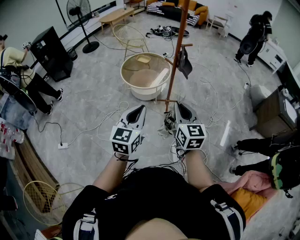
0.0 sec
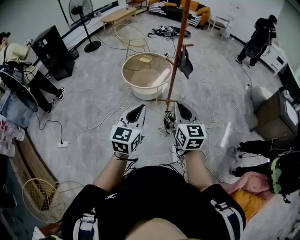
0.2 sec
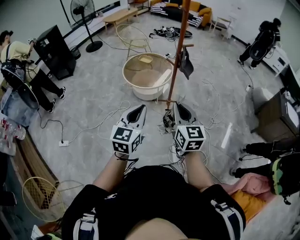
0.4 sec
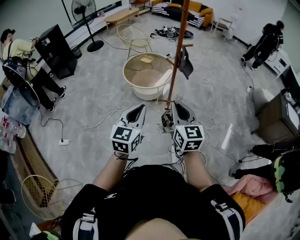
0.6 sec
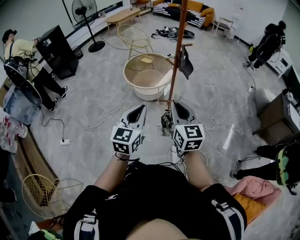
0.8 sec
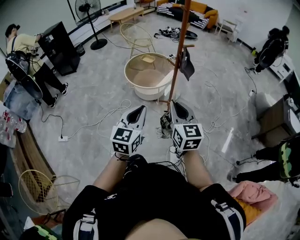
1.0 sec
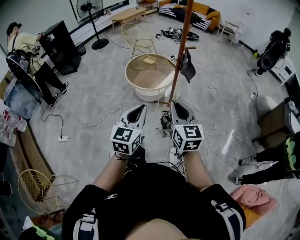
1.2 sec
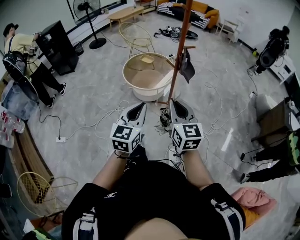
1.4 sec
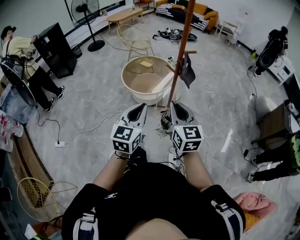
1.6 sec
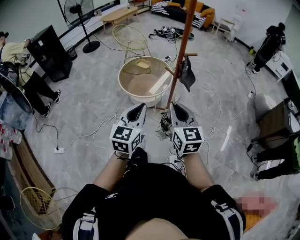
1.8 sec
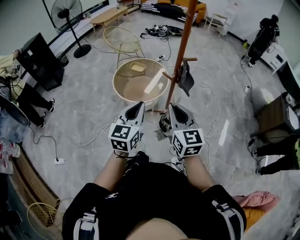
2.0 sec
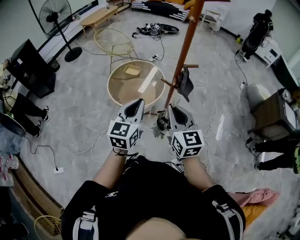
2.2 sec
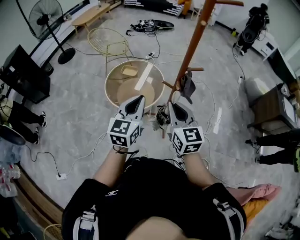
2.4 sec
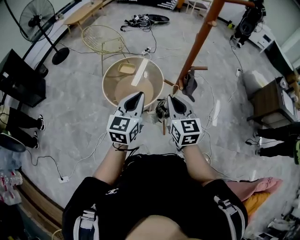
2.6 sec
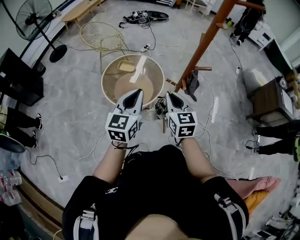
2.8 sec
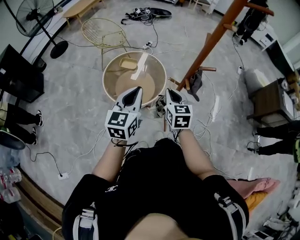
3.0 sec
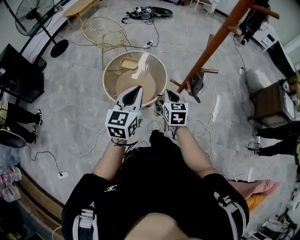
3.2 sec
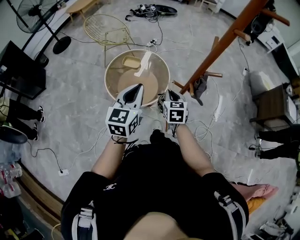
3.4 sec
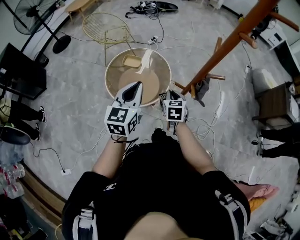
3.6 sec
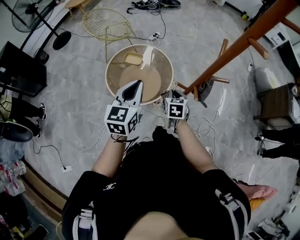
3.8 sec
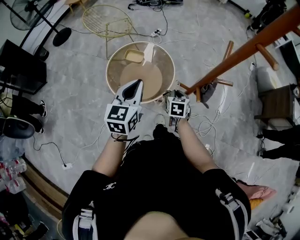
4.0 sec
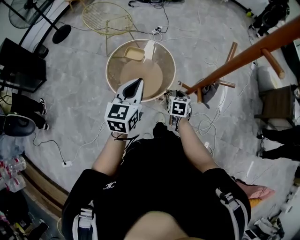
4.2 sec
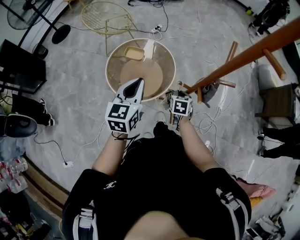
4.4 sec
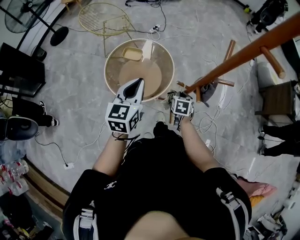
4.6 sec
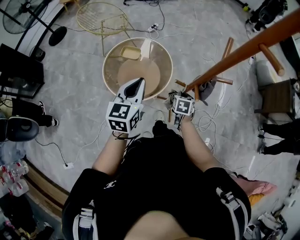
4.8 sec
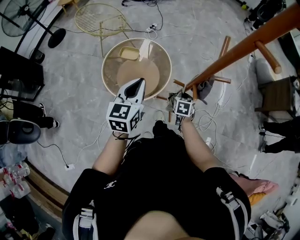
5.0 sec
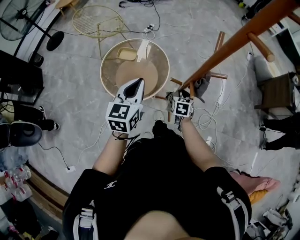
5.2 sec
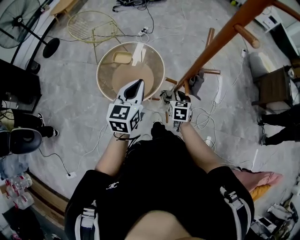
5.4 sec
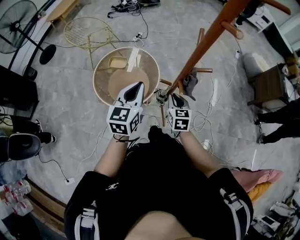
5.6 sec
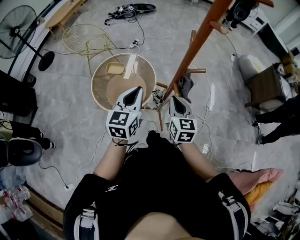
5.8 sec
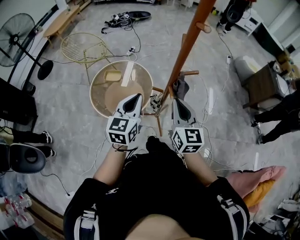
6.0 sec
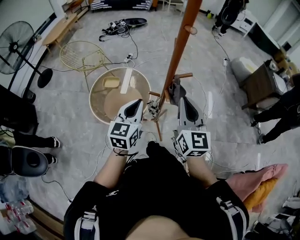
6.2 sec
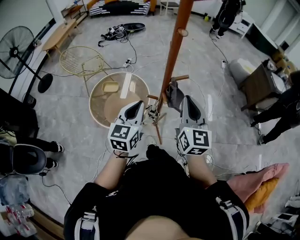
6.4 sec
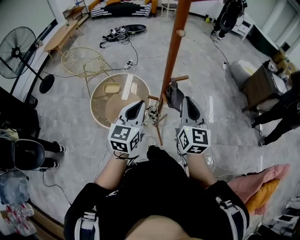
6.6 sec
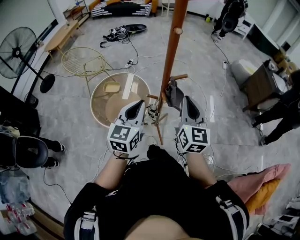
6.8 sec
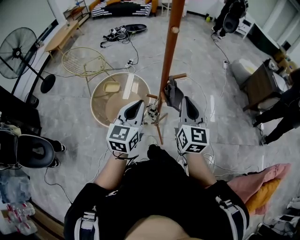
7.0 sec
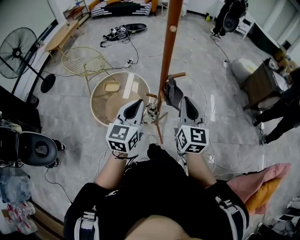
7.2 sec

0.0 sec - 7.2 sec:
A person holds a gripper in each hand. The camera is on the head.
0.0 sec - 1.4 sec: The right gripper shifts some 5 cm forward. The left gripper travels to the right and forward by approximately 10 cm.
1.4 sec - 2.8 sec: Both grippers are carried forward, some 50 cm. The right gripper swivels some 20 degrees.
2.8 sec - 4.4 sec: The right gripper moves downward and forward, some 30 cm, and points its fingers some 30 degrees further downward; the left gripper goes about 20 cm forward and downward.
4.4 sec - 5.8 sec: The right gripper goes about 20 cm upward and backward, and tilts its fingers some 30 degrees upward, while the left gripper shifts approximately 10 cm to the right.
5.8 sec - 7.2 sec: The right gripper is displaced upward and to the right by roughly 15 cm, while the left gripper heads to the right, upward and backward, covering approximately 10 cm.

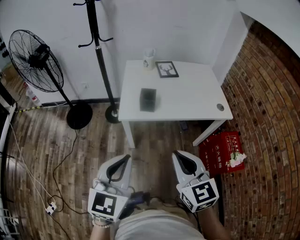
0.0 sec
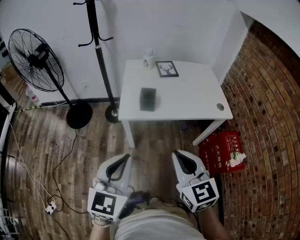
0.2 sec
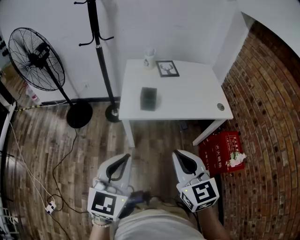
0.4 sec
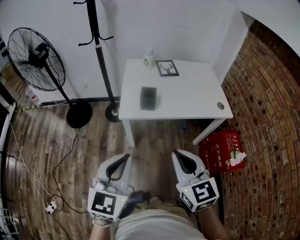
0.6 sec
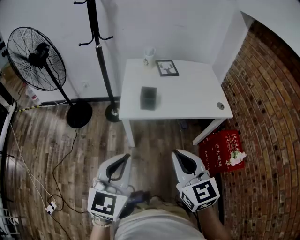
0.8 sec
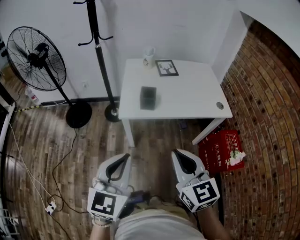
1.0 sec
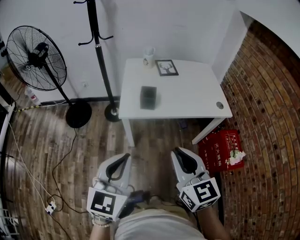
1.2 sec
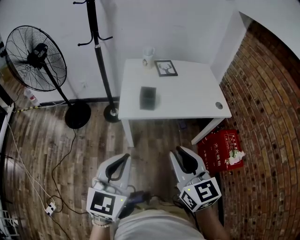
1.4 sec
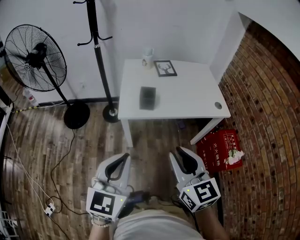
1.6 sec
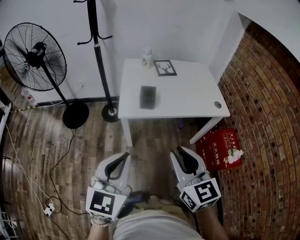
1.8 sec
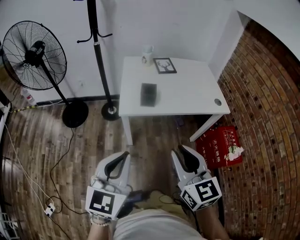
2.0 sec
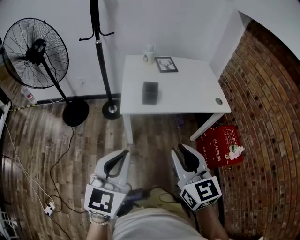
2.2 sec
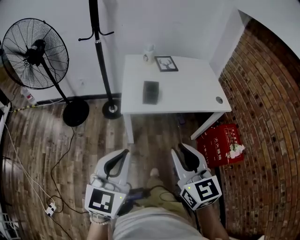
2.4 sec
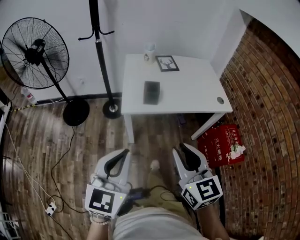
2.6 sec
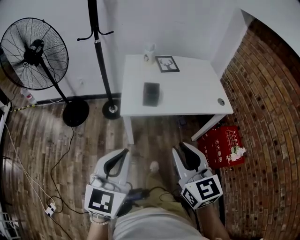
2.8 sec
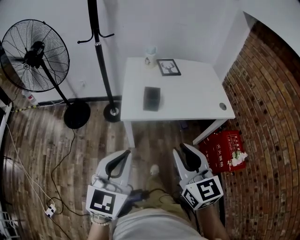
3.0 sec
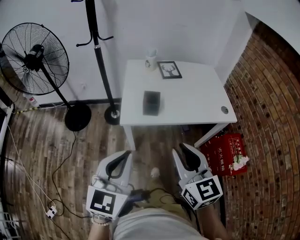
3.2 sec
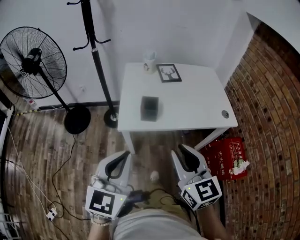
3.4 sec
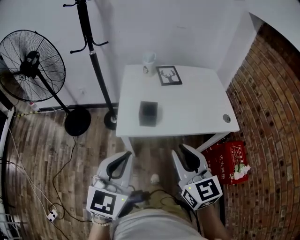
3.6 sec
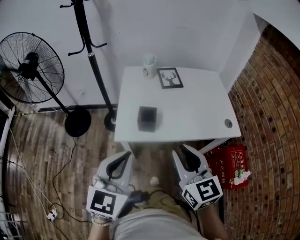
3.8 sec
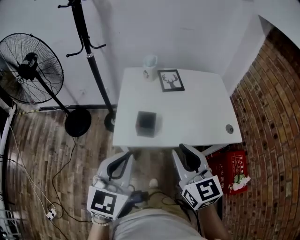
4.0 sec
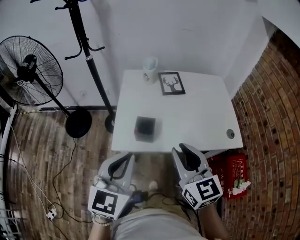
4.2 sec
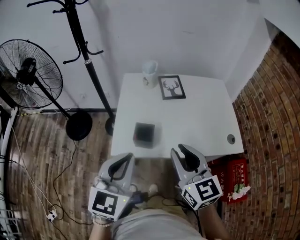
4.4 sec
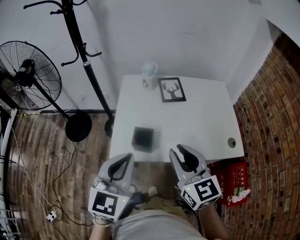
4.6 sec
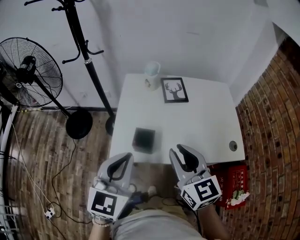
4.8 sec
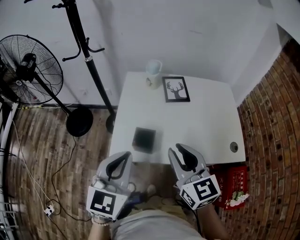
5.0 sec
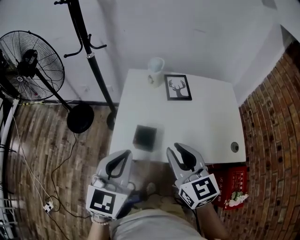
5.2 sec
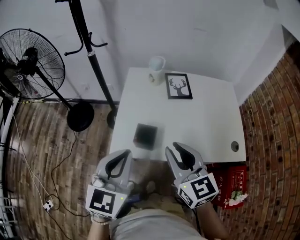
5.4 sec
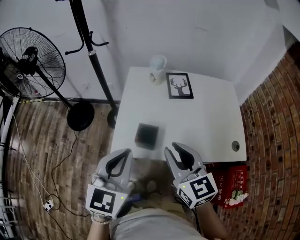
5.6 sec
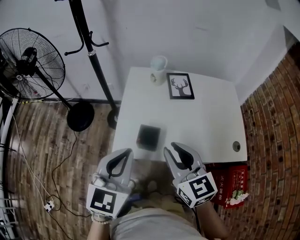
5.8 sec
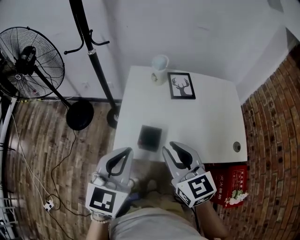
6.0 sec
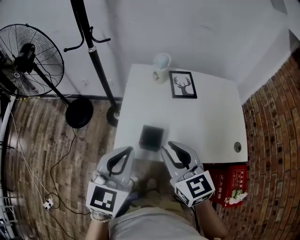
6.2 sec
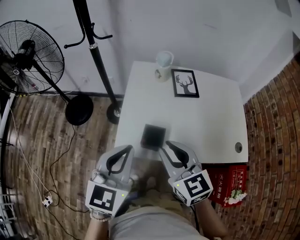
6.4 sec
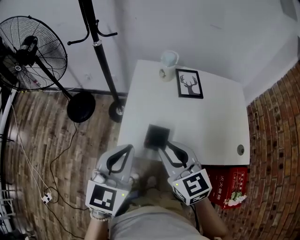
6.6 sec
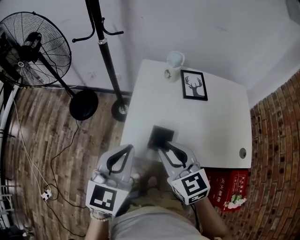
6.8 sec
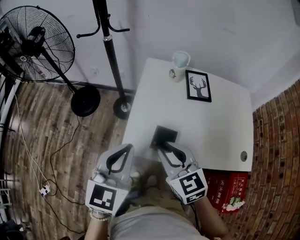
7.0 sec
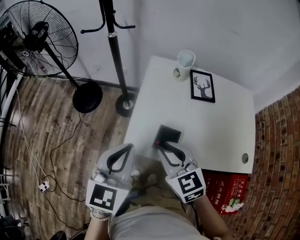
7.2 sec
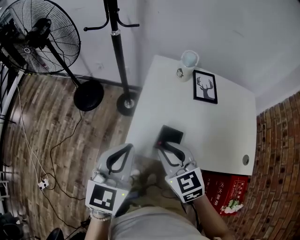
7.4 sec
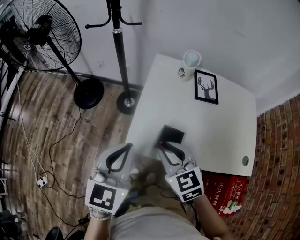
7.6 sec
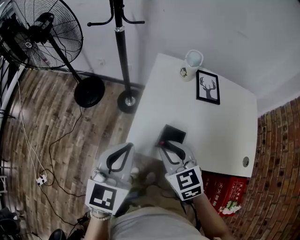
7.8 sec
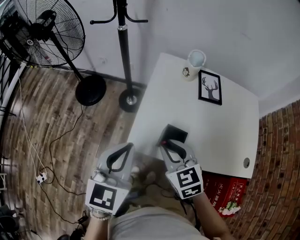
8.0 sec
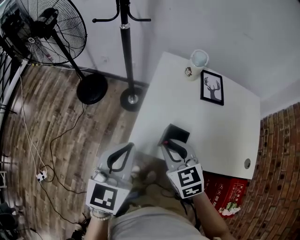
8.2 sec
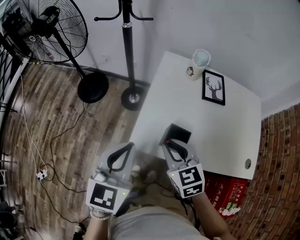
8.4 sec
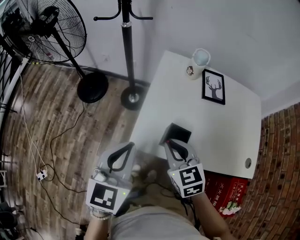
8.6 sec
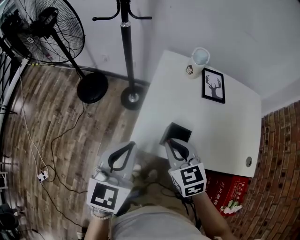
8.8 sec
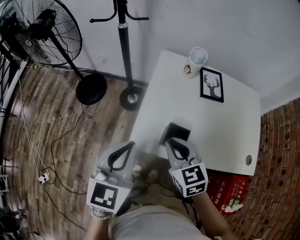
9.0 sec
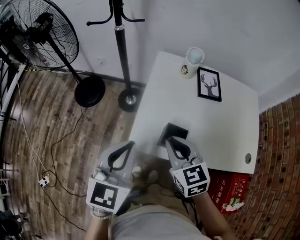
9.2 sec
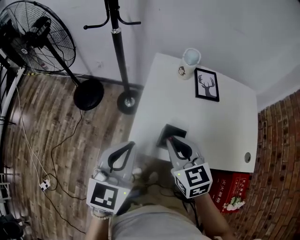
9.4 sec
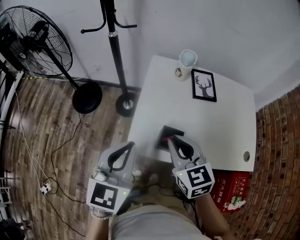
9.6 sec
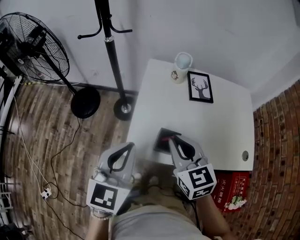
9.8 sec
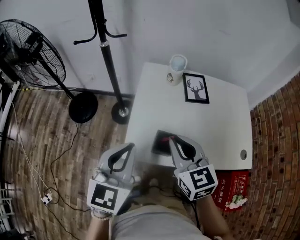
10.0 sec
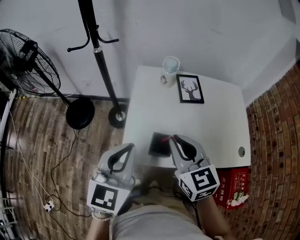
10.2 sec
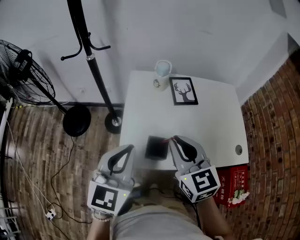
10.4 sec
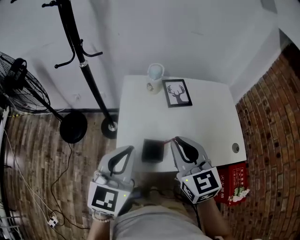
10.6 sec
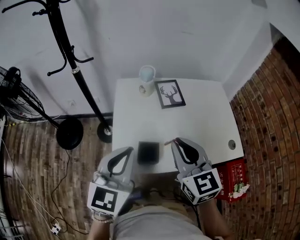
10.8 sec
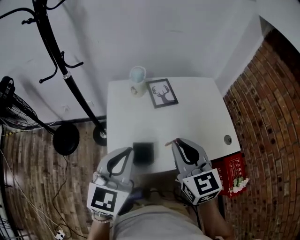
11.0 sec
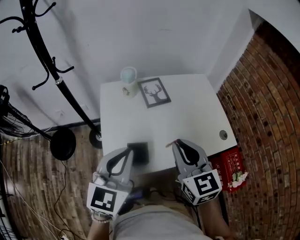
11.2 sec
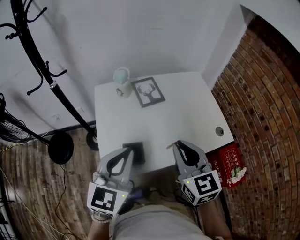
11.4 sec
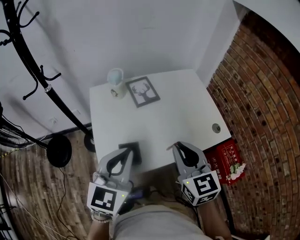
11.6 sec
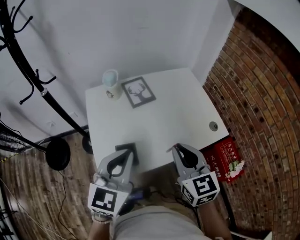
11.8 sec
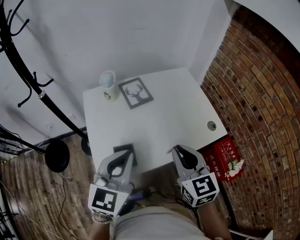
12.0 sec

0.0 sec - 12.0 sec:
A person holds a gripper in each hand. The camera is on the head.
0.0 sec - 3.0 sec: There are only small adjustments of the grippers.
3.0 sec - 4.4 sec: Both grippers move forward, about 20 cm.
4.4 sec - 6.0 sec: The right gripper shifts some 10 cm forward and to the left. The left gripper heads forward, covering about 5 cm.
6.0 sec - 7.6 sec: The right gripper goes roughly 10 cm downward and to the left, and rotates some 20 degrees. Meanwhile the left gripper shifts approximately 5 cm to the left.
7.6 sec - 9.0 sec: The grippers stay close to where they were, moving slightly.
9.0 sec - 10.4 sec: The right gripper moves upward and to the right, roughly 15 cm, while the left gripper shifts some 5 cm to the right.
10.4 sec - 12.0 sec: Both grippers travel together to the right, roughly 15 cm. The left gripper changes its angle by some 20 degrees. Meanwhile the right gripper changes its angle by roughly 30 degrees.

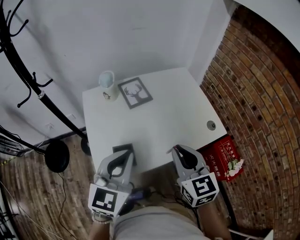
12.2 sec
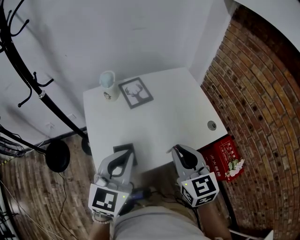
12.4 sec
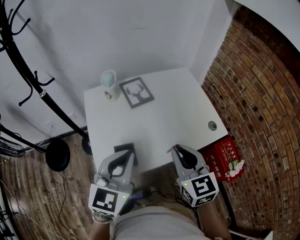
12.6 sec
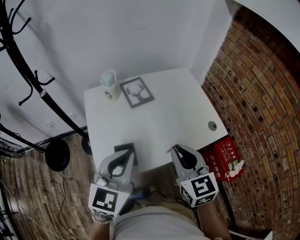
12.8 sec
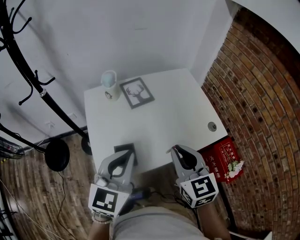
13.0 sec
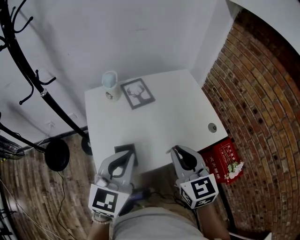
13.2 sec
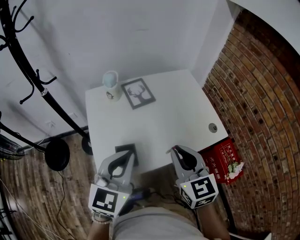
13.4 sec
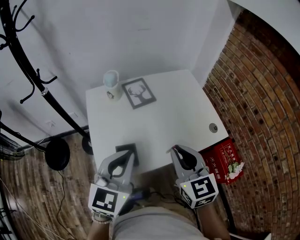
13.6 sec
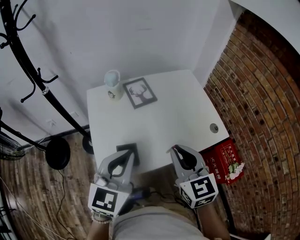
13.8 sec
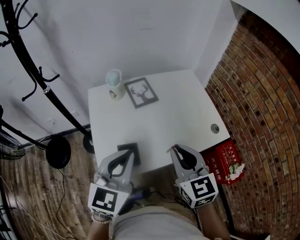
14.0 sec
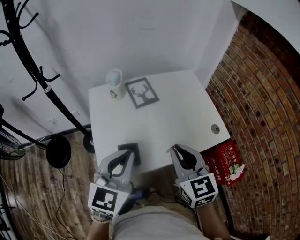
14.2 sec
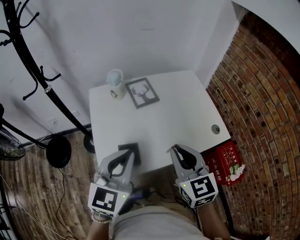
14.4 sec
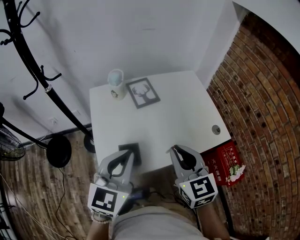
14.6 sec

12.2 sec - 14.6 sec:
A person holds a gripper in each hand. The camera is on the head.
12.2 sec - 14.6 sec: The grippers stay close to where they were, moving slightly.

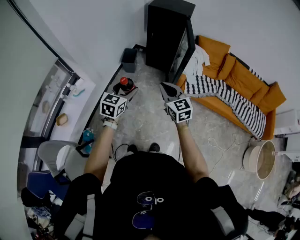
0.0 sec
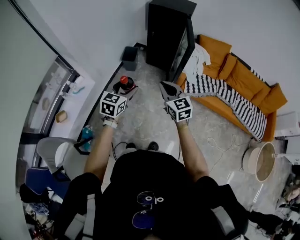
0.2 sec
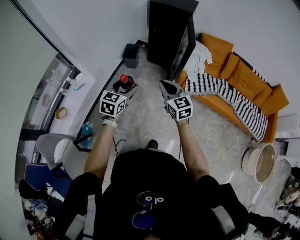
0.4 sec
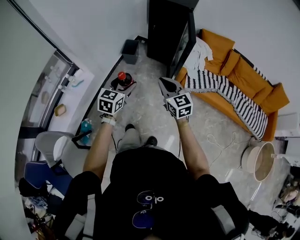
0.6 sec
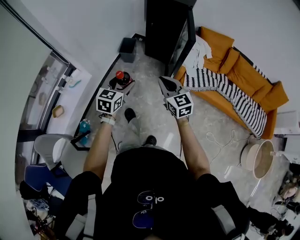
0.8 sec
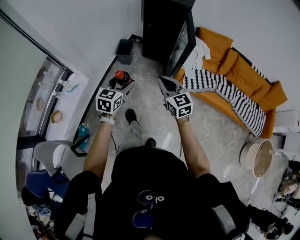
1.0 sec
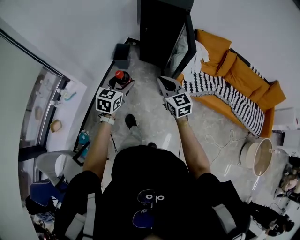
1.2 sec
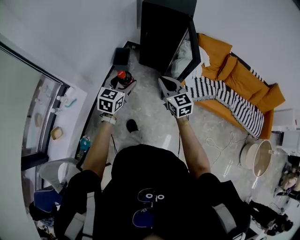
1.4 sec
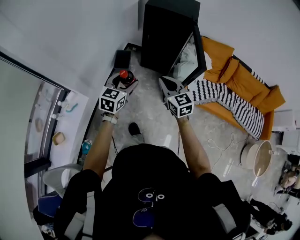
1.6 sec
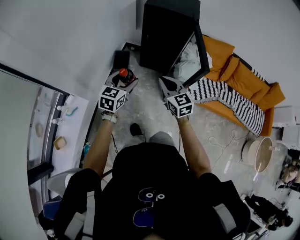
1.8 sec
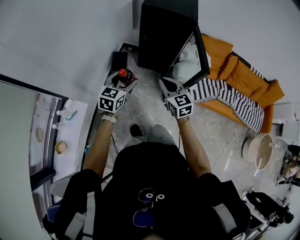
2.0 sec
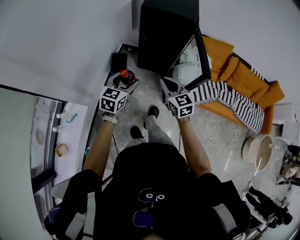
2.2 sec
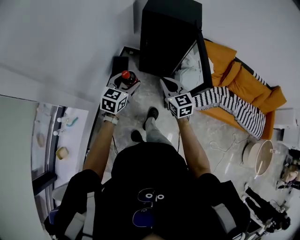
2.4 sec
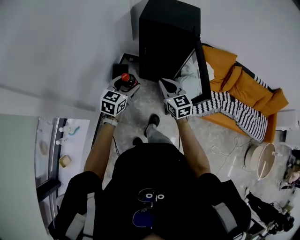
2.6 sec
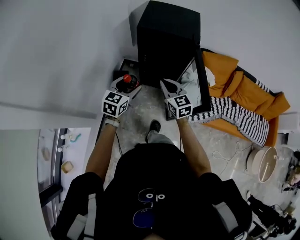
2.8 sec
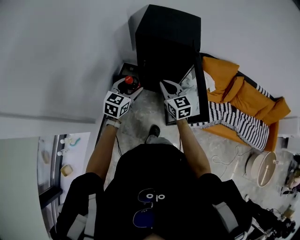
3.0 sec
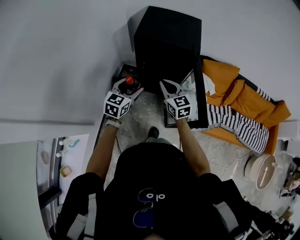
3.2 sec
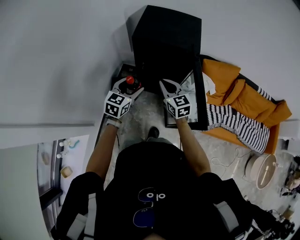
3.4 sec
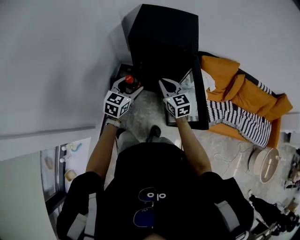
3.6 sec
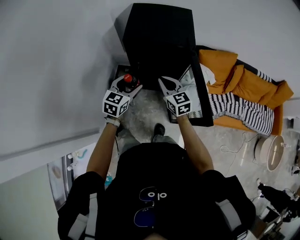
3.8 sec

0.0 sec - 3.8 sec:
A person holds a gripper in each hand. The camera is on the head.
0.0 sec - 1.2 sec: The grippers both shift forward by about 15 cm.
1.2 sec - 2.6 sec: Both grippers travel together forward, roughly 30 cm.
2.6 sec - 3.8 sec: The two grippers go some 20 cm forward.
